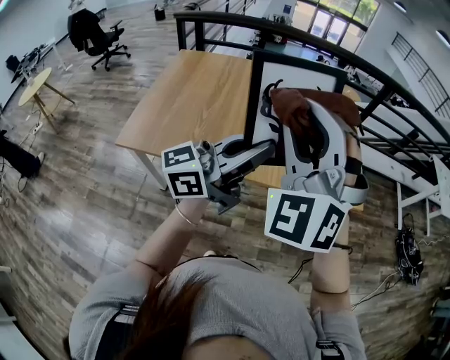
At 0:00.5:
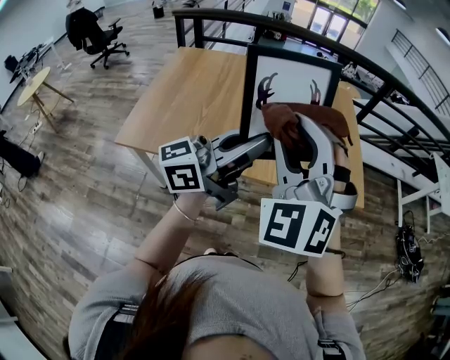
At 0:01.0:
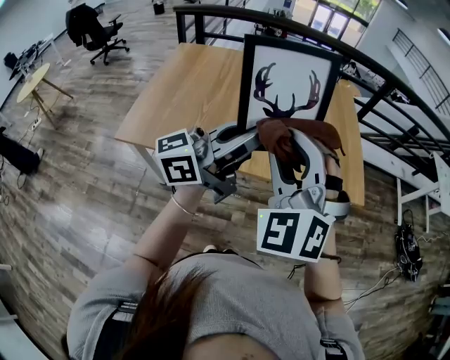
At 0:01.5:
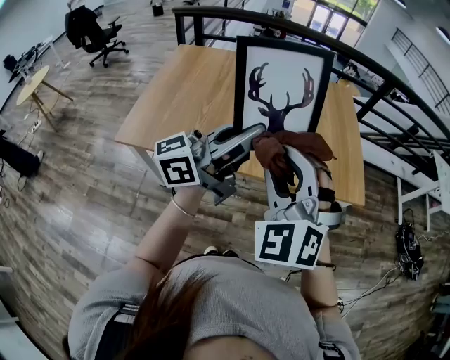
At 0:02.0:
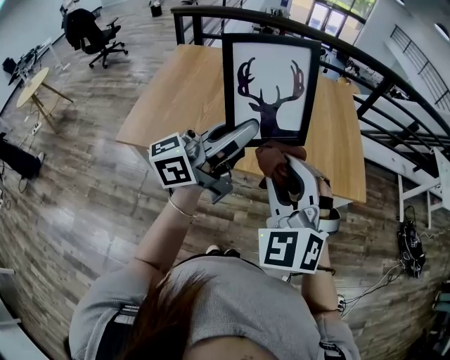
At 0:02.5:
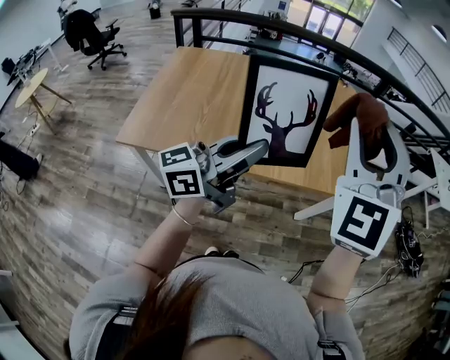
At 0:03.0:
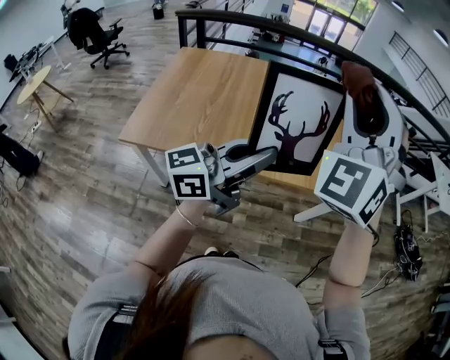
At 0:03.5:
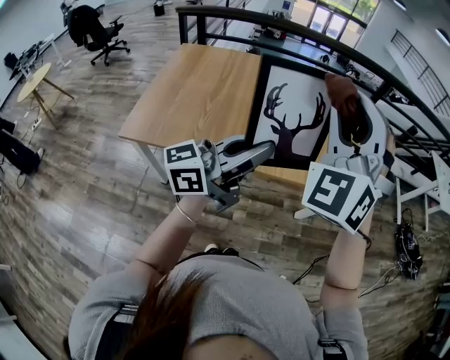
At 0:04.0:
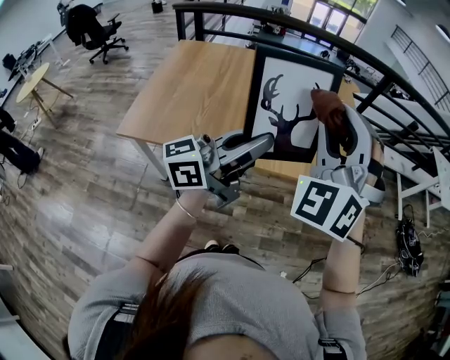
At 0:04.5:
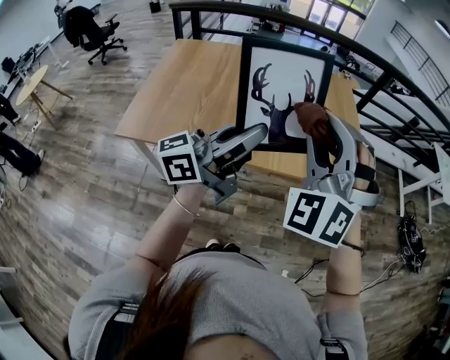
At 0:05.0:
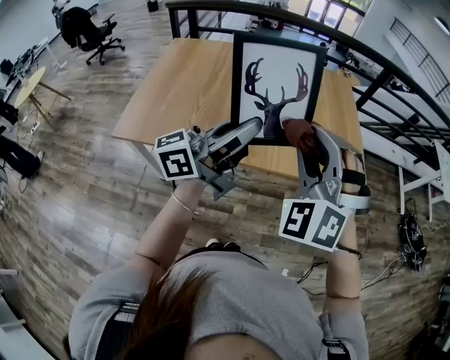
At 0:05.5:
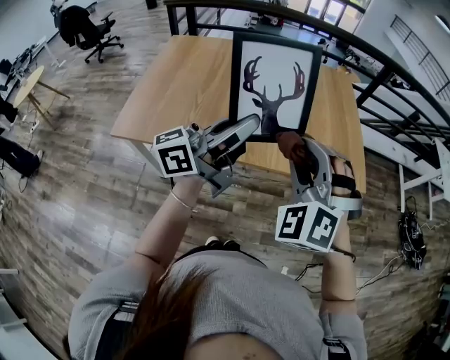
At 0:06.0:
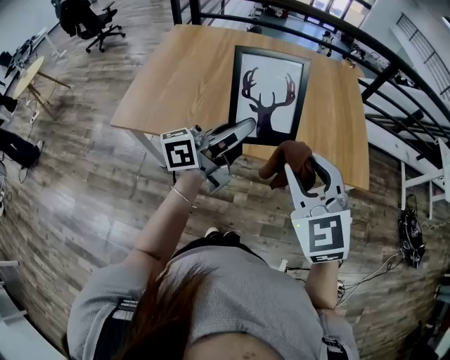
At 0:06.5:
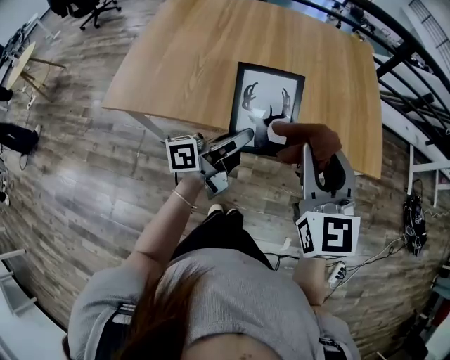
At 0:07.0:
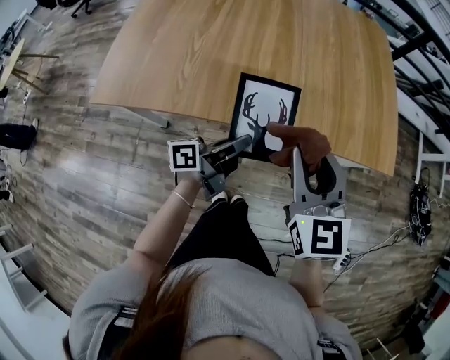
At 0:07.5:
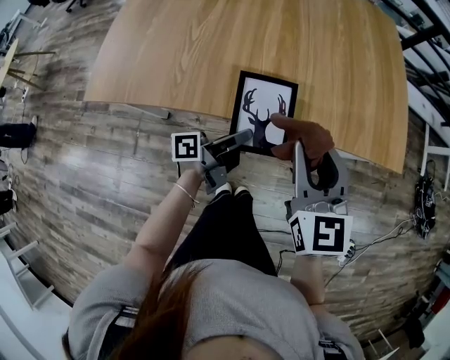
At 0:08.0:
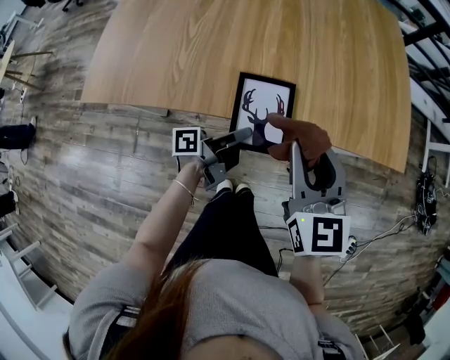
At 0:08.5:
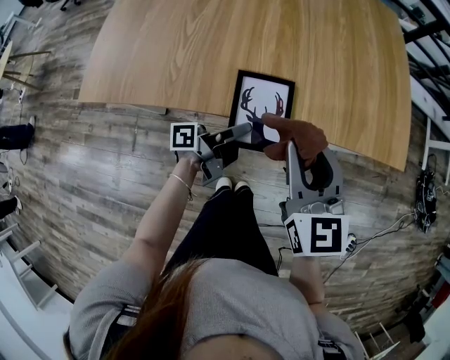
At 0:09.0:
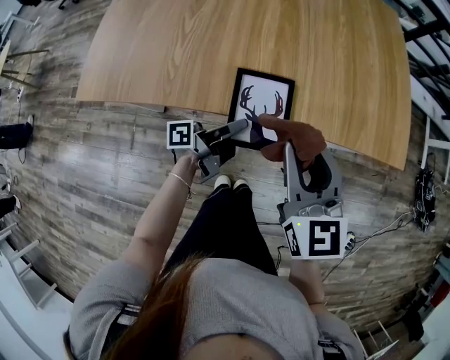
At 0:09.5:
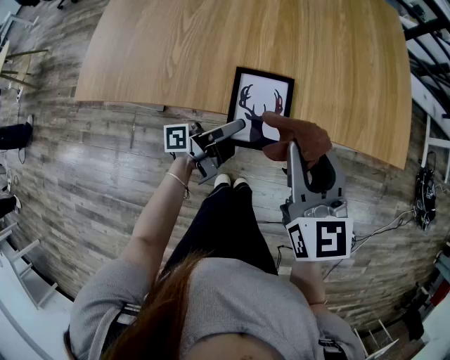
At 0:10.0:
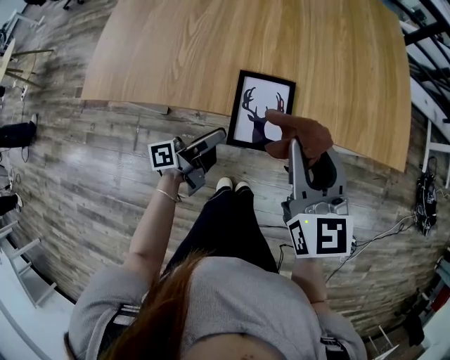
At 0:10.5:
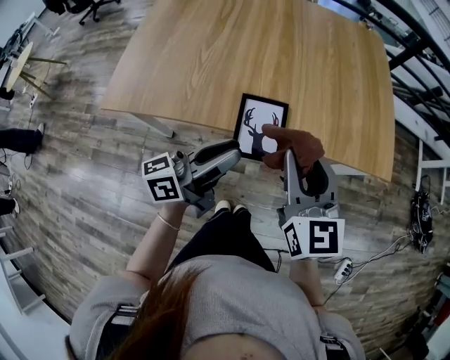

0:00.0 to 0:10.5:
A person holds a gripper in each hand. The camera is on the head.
0:00.0 to 0:02.0: The right gripper is displaced downward by approximately 10 cm.
0:02.0 to 0:04.0: The right gripper heads upward and forward, covering about 15 cm, and turns by some 30 degrees.
0:04.0 to 0:06.5: Both grippers travel together downward, about 20 cm. The right gripper rotates around the line of its fingers by about 60 degrees, clockwise from behind; the left gripper changes its angle by approximately 30 degrees.
0:06.5 to 0:08.5: The left gripper shifts about 15 cm downward, and swivels some 30 degrees. The right gripper moves downward and to the left, approximately 15 cm.
0:08.5 to 0:10.5: The left gripper is displaced upward and backward by roughly 20 cm, and twists about 40 degrees clockwise, seen from behind. Meanwhile the right gripper moves upward, roughly 5 cm.

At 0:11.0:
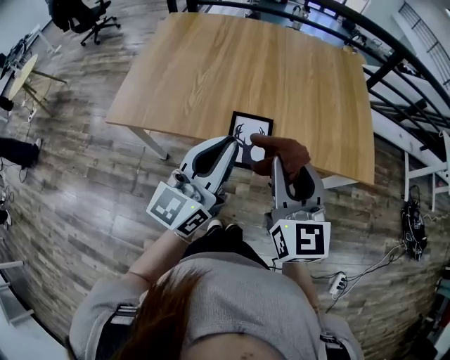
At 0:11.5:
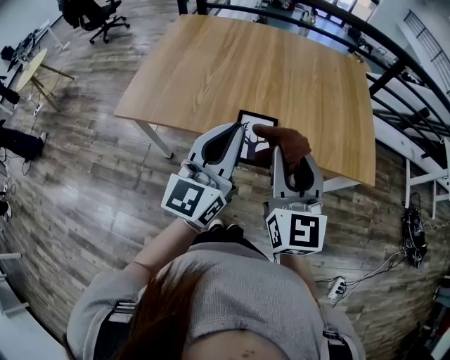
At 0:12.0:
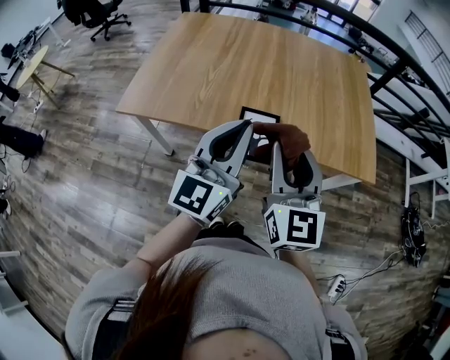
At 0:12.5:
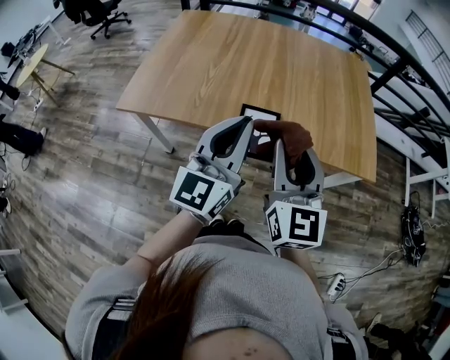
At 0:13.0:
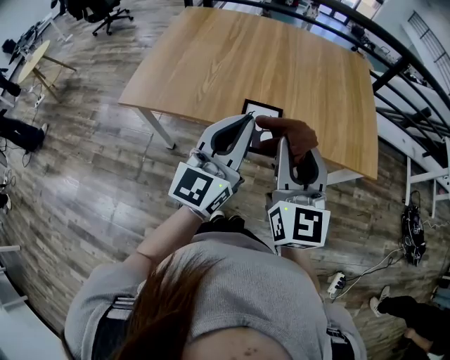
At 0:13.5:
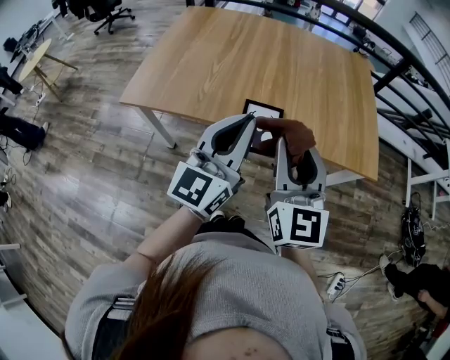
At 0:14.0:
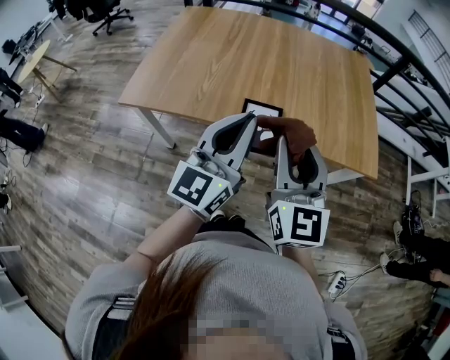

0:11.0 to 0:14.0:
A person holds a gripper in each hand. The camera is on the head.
0:11.0 to 0:12.5: The grippers move only a little.
0:12.5 to 0:14.0: Both grippers stay about where they are.

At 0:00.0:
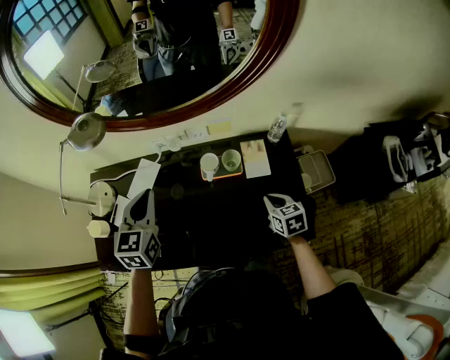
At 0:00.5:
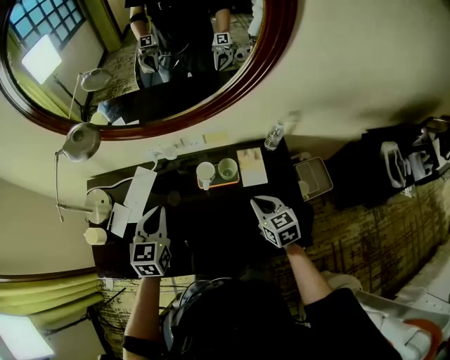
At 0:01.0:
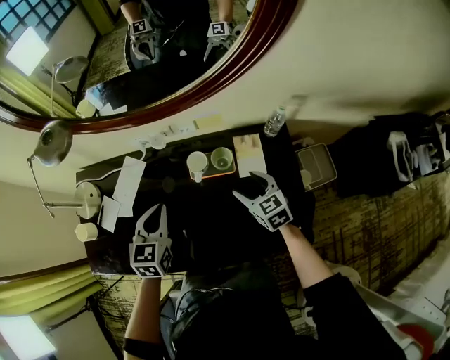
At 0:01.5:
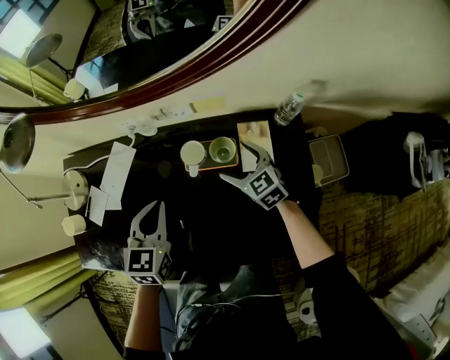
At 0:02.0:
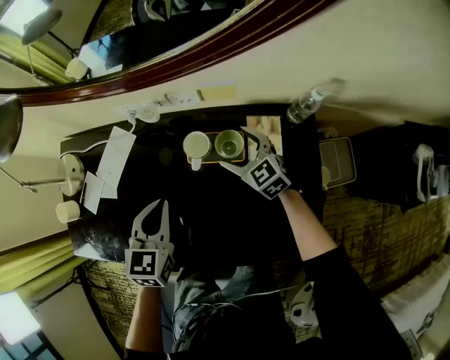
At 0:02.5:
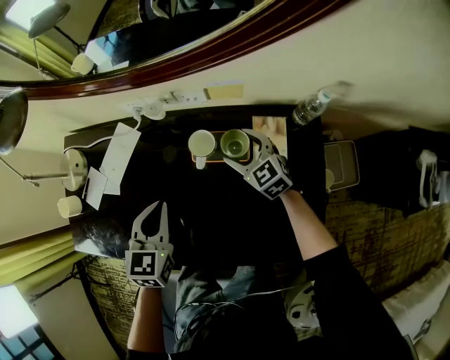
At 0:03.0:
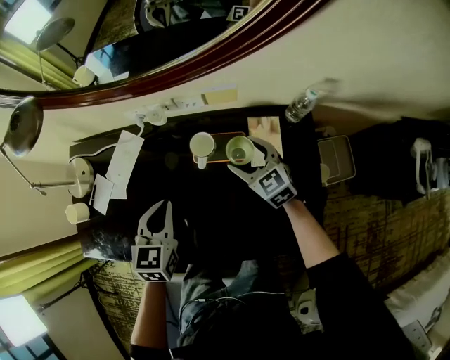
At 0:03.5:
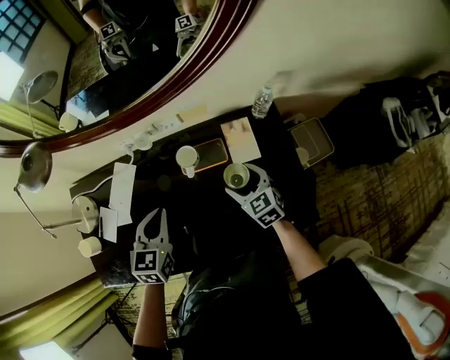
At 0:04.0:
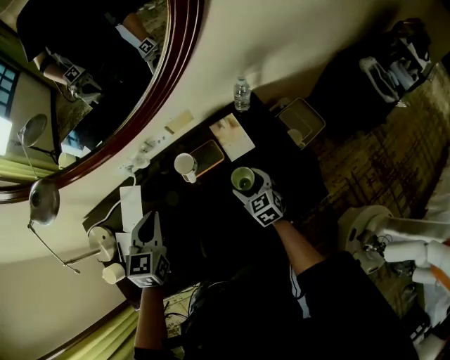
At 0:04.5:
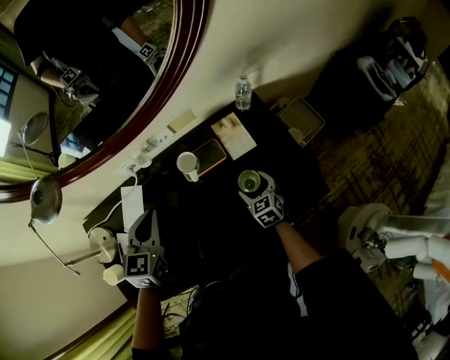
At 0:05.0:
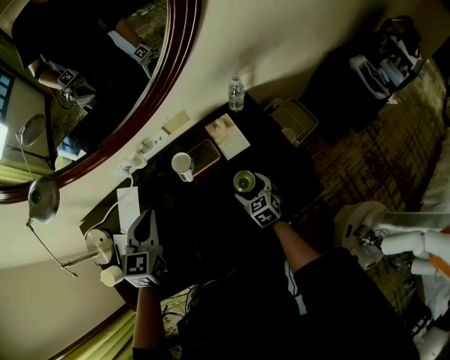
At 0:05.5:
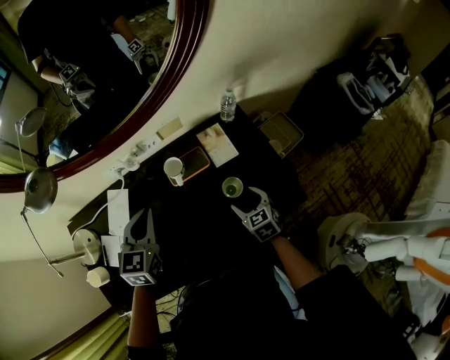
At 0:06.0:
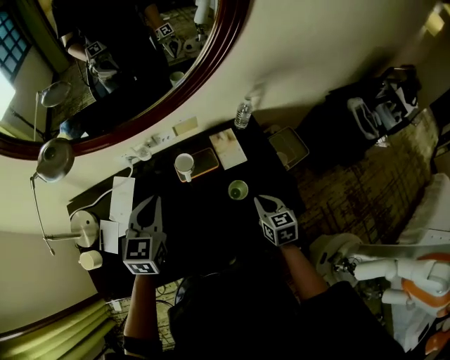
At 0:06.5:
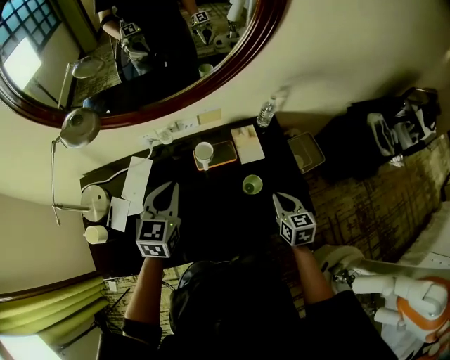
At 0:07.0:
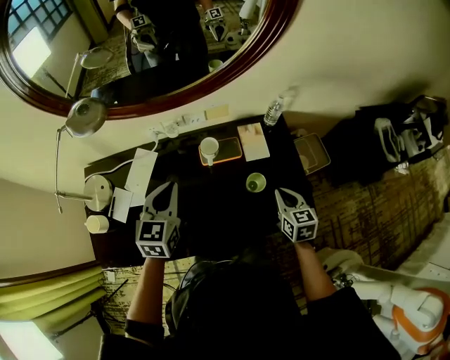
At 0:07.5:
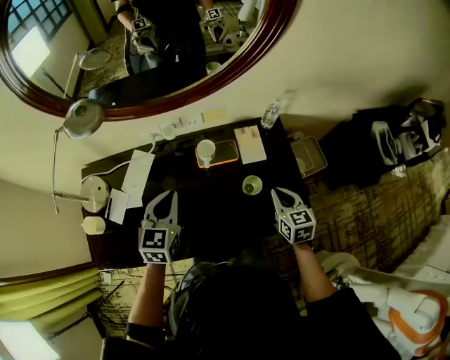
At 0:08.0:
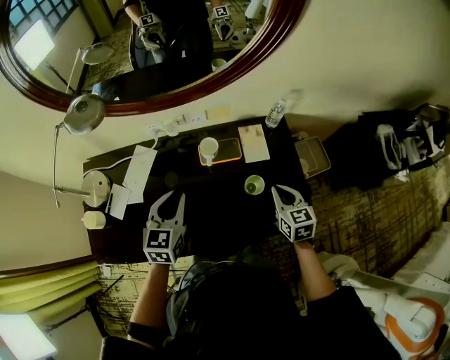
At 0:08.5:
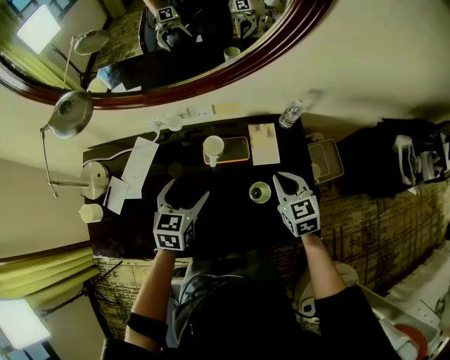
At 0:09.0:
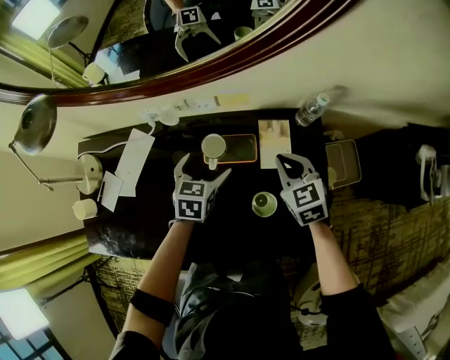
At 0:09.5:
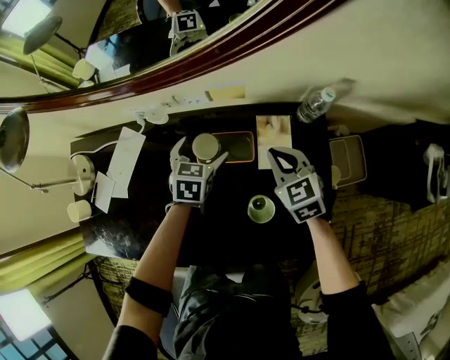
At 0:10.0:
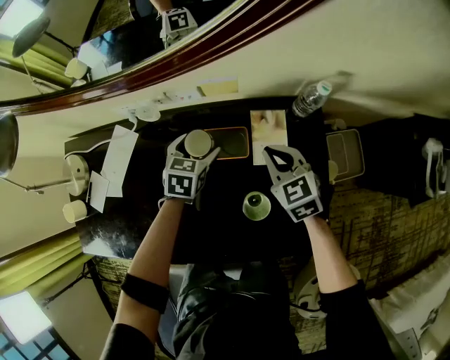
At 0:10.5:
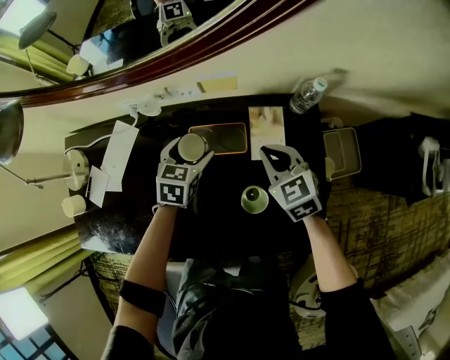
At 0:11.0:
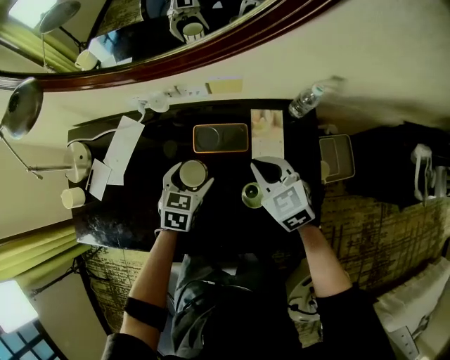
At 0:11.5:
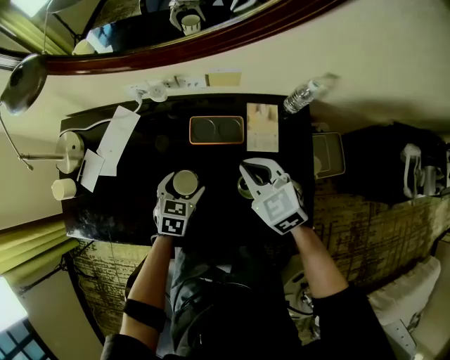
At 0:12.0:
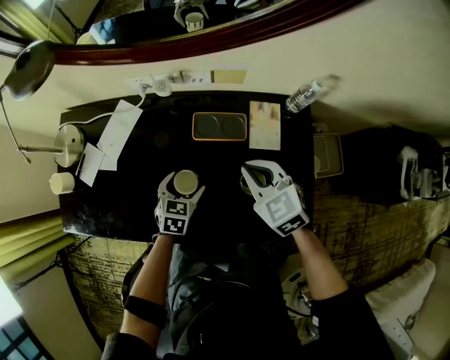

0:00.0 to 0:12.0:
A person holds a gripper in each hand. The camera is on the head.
0:00.0 to 0:02.0: The right gripper goes roughly 20 cm forward and downward, turns by some 40 degrees, and opens its fingers. Meanwhile the left gripper goes approximately 20 cm downward and to the right.
0:02.0 to 0:04.0: The left gripper is displaced upward by approximately 10 cm, and changes its angle by roughly 20 degrees, while the right gripper moves approximately 15 cm, and rotates about 40 degrees.
0:04.0 to 0:06.0: The right gripper goes approximately 15 cm upward, backward and to the right, and closes up, while the left gripper goes about 5 cm upward.
0:06.0 to 0:08.0: The right gripper moves approximately 5 cm; the left gripper is displaced backward by some 5 cm.
0:08.0 to 0:10.0: The left gripper moves downward, forward and to the right, approximately 30 cm, changes its angle by roughly 20 degrees, and opens its fingers; the right gripper travels forward and downward by approximately 20 cm, and rotates roughly 30 degrees.
0:10.0 to 0:12.0: The right gripper travels backward, to the left and upward by roughly 15 cm. Meanwhile the left gripper travels backward and to the left by roughly 20 cm.

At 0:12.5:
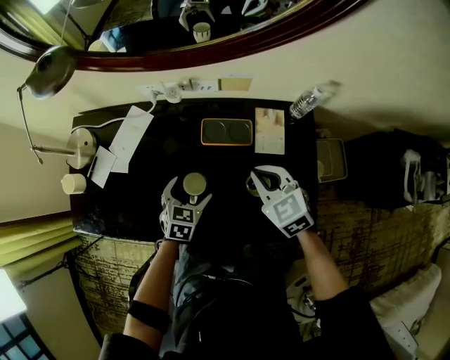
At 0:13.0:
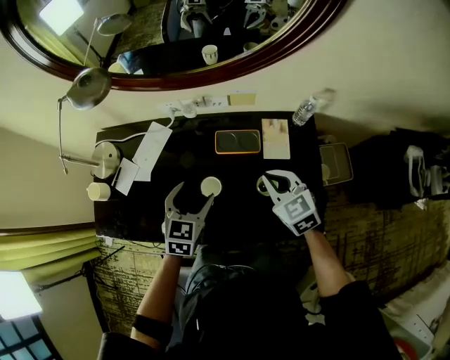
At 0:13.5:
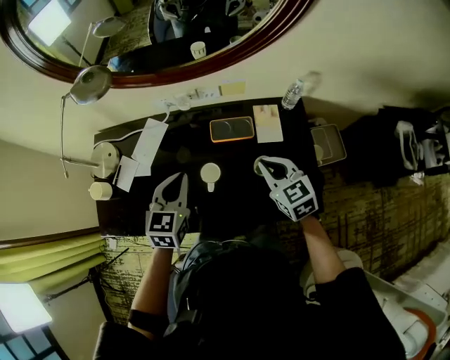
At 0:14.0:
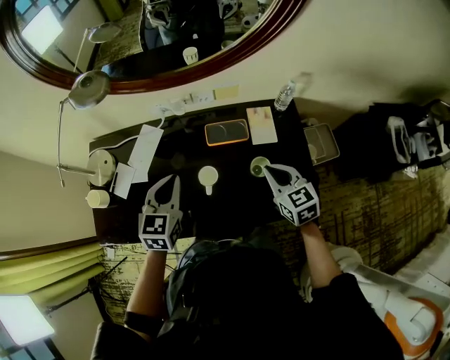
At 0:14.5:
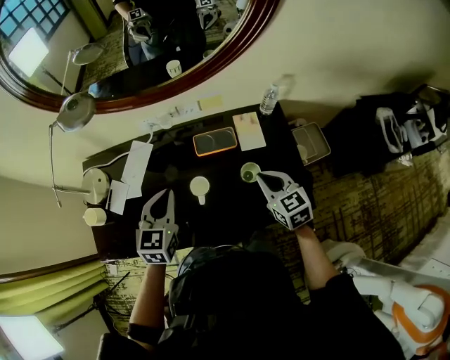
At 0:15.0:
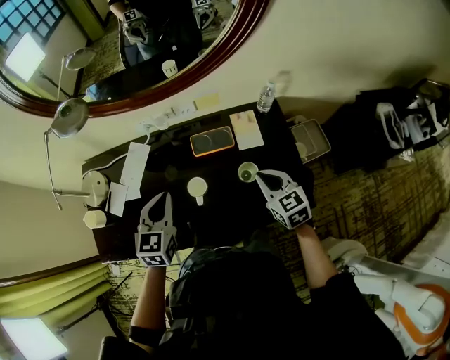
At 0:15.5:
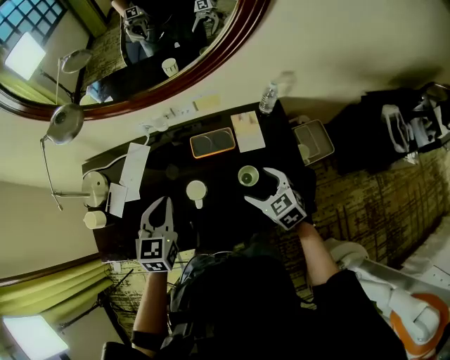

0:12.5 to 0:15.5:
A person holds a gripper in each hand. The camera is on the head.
0:12.5 to 0:14.0: The left gripper goes some 20 cm upward, rotates about 20 degrees, and closes up, while the right gripper travels backward and upward by approximately 10 cm, and swivels roughly 20 degrees.
0:14.0 to 0:15.5: The right gripper goes approximately 5 cm downward, and opens up.
